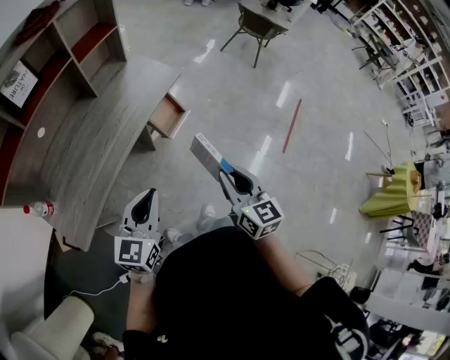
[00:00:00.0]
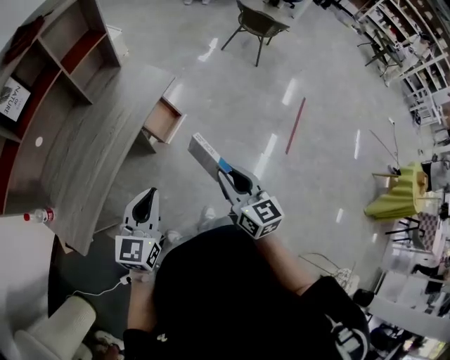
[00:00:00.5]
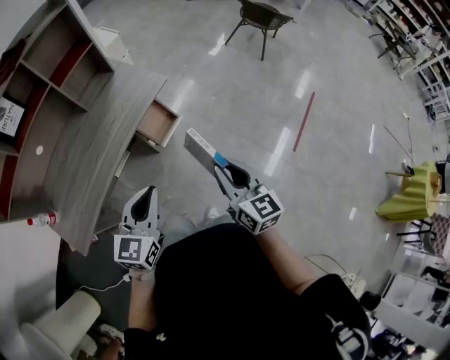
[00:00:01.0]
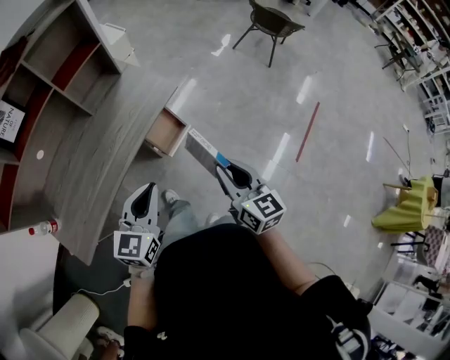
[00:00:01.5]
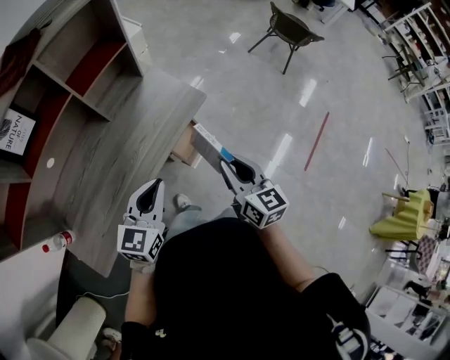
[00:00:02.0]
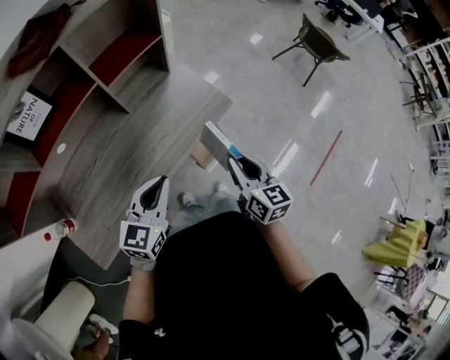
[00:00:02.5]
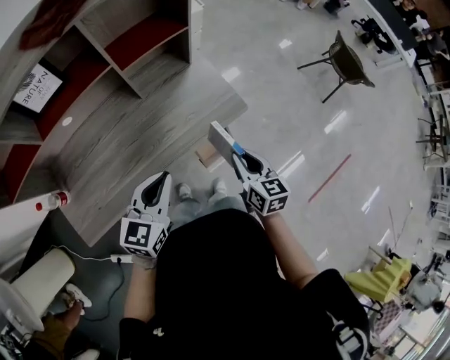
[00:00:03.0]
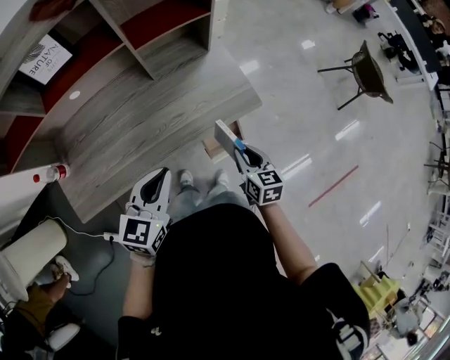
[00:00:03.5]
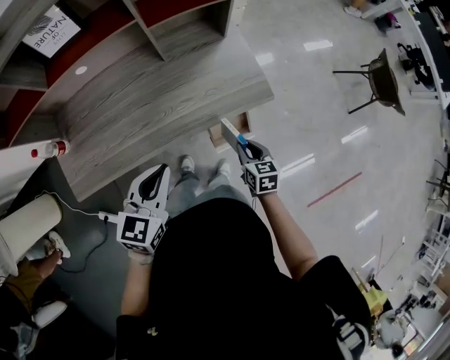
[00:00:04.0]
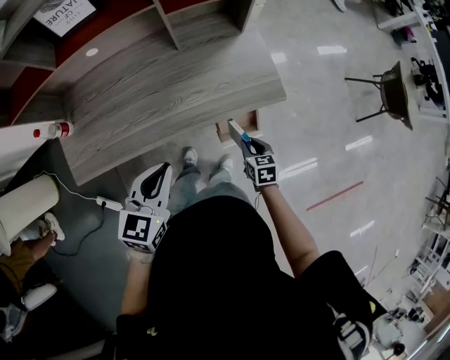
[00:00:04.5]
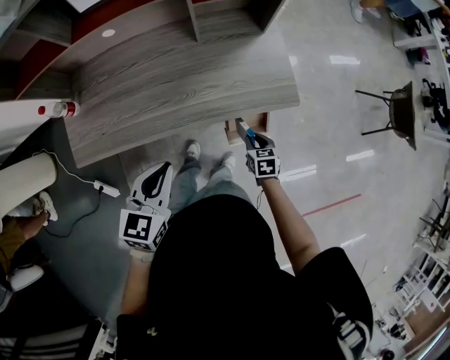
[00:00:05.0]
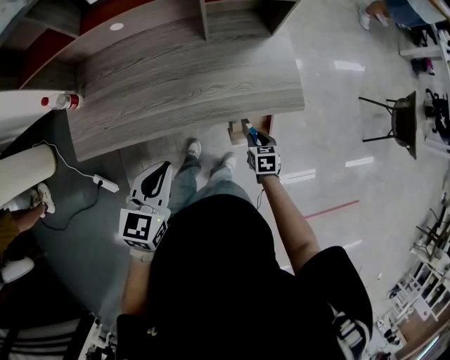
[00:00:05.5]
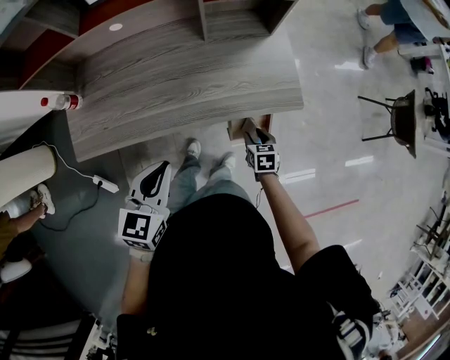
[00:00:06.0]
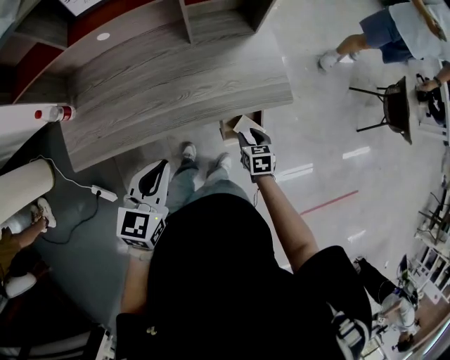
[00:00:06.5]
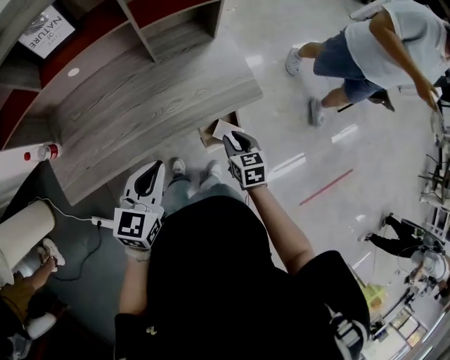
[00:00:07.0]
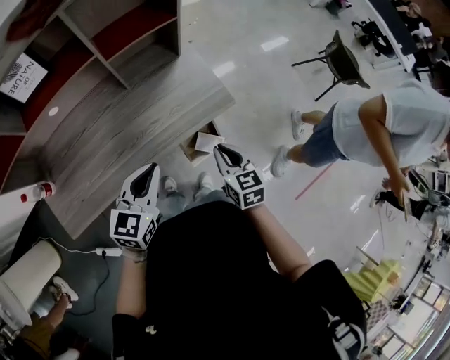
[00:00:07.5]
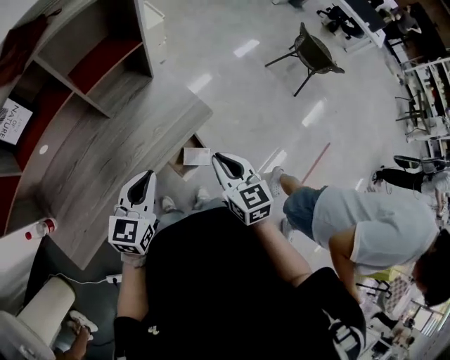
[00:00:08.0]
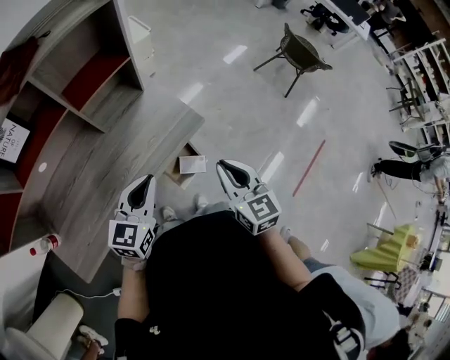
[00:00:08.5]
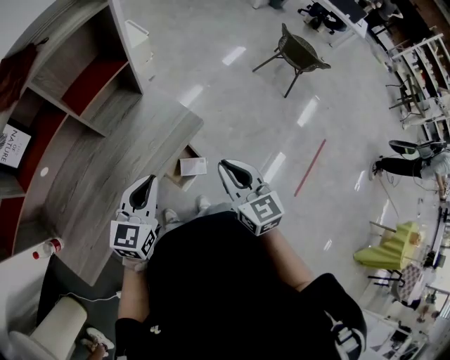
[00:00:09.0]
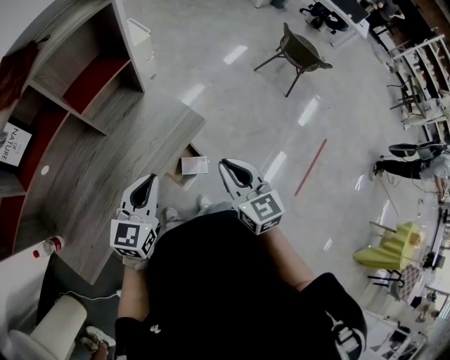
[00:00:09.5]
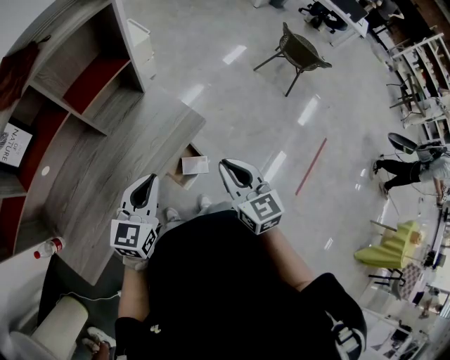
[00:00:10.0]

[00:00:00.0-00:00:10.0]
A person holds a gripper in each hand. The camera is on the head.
00:00:00.0 to 00:00:02.0: Both grippers move forward, some 25 cm.
00:00:02.0 to 00:00:04.0: The left gripper shifts by some 5 cm, and rotates about 30 degrees; the right gripper moves downward, approximately 20 cm, and turns by about 40 degrees.
00:00:04.0 to 00:00:06.0: The right gripper heads downward, covering roughly 10 cm. Meanwhile the left gripper travels to the left by some 5 cm.
00:00:06.0 to 00:00:08.0: The left gripper ends up approximately 15 cm from where it was, and changes its angle by roughly 30 degrees. The right gripper moves upward, approximately 30 cm, changes its angle by some 40 degrees, and closes up.
00:00:08.0 to 00:00:10.0: The right gripper shifts by roughly 5 cm.

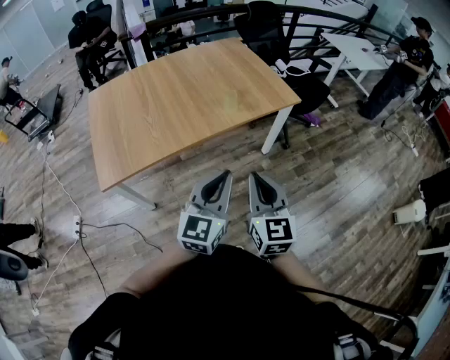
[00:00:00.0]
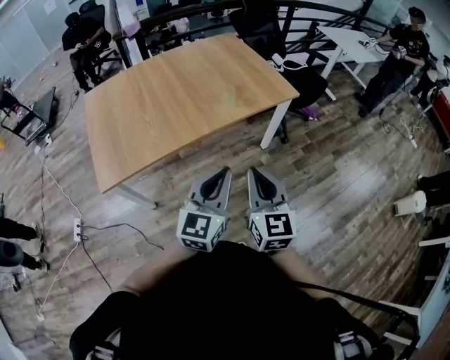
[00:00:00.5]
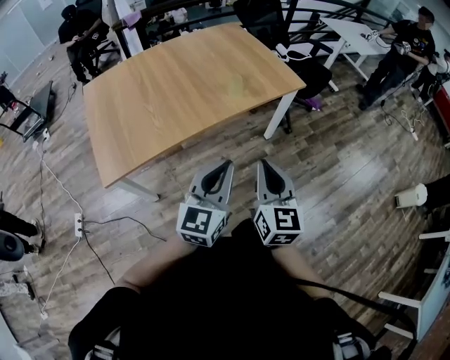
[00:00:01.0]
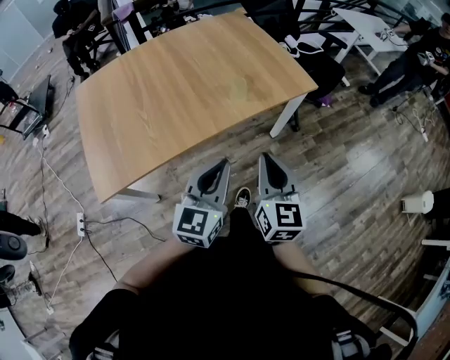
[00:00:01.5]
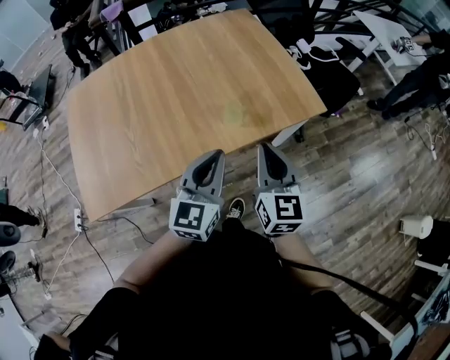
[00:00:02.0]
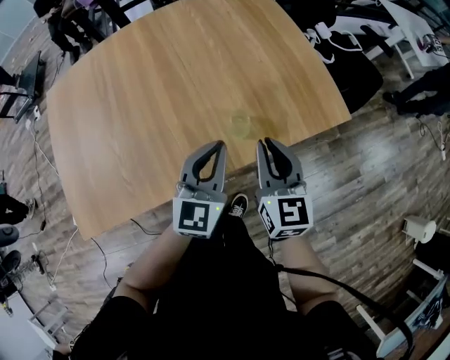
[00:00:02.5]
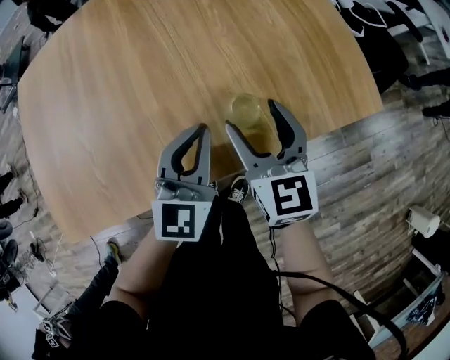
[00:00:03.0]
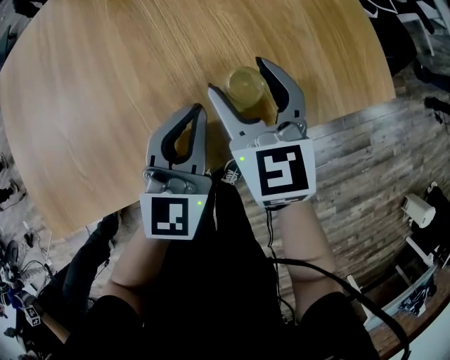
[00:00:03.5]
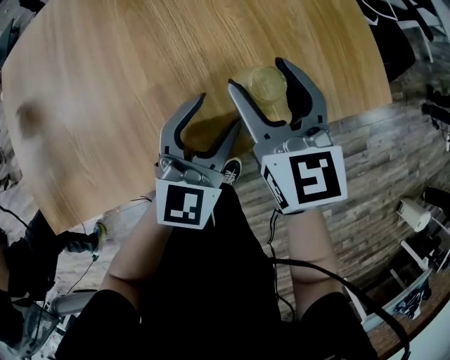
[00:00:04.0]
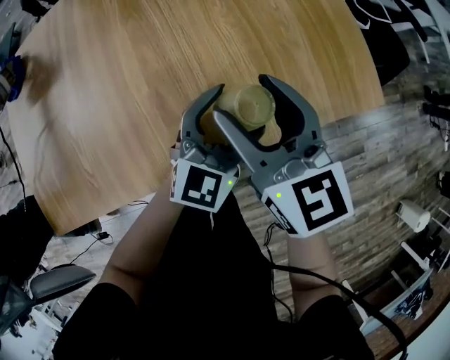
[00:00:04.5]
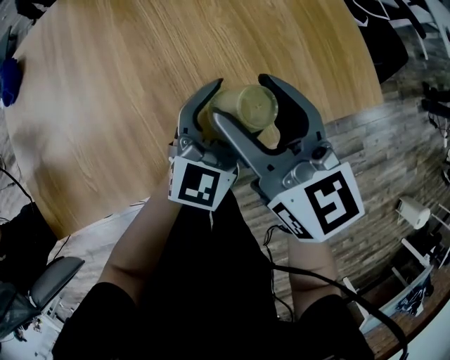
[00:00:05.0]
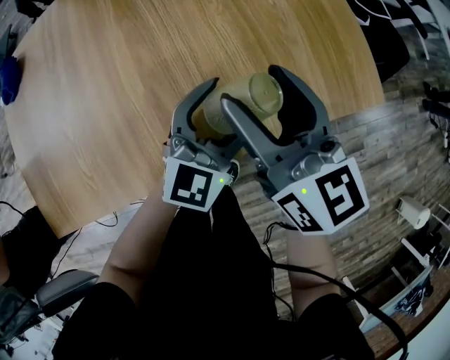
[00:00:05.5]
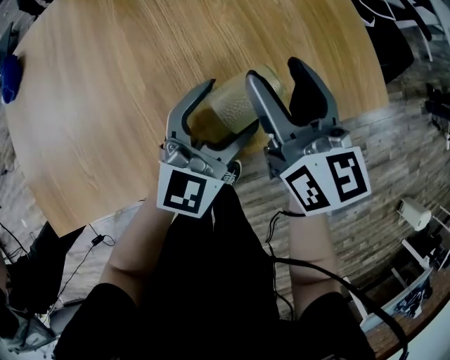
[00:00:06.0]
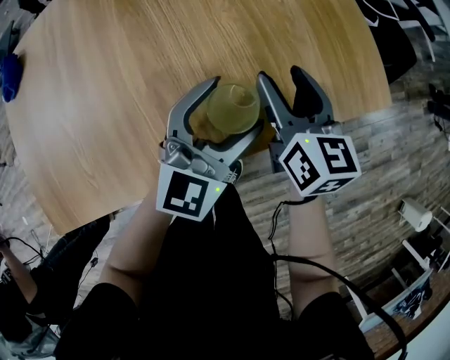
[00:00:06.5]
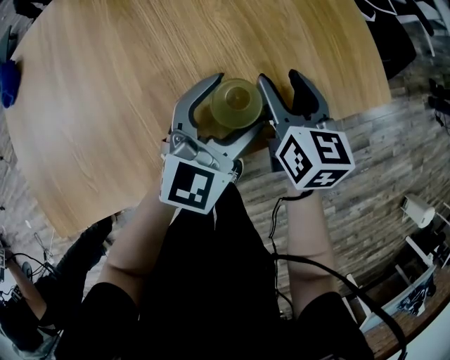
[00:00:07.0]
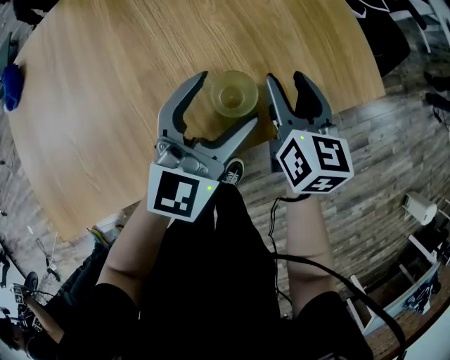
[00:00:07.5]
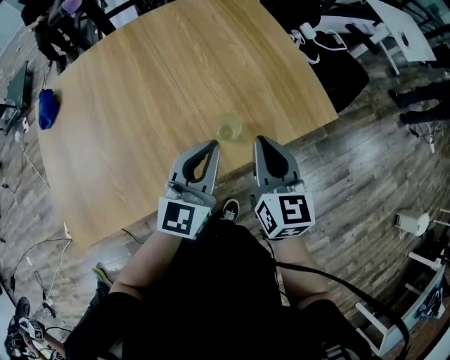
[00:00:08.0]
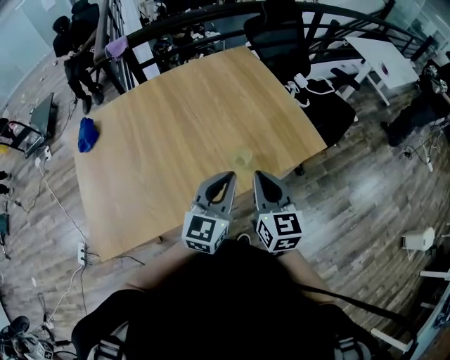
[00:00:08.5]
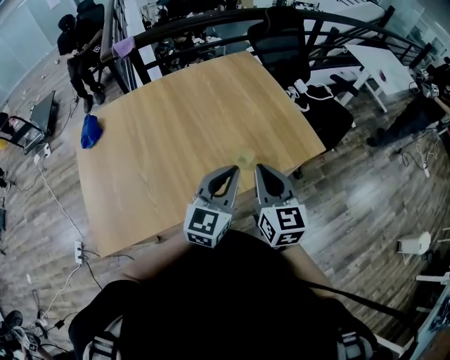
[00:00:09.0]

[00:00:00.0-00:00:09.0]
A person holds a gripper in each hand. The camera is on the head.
00:00:00.0 to 00:00:02.0: The two grippers go roughly 35 cm forward.
00:00:02.0 to 00:00:04.5: The right gripper moves forward and downward, about 25 cm, turns by about 20 degrees, and opens; the left gripper heads downward and forward, covering roughly 35 cm, and opens its fingers.
00:00:04.5 to 00:00:07.0: The right gripper is displaced downward, to the right and forward by some 15 cm, and swivels some 20 degrees.
00:00:07.0 to 00:00:09.0: The grippers both shift upward and backward by roughly 35 cm. The left gripper closes up. Meanwhile the right gripper turns by about 20 degrees, and closes its fingers.

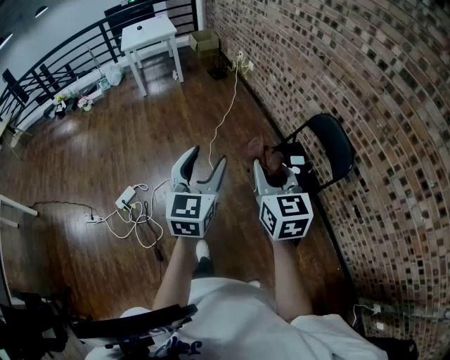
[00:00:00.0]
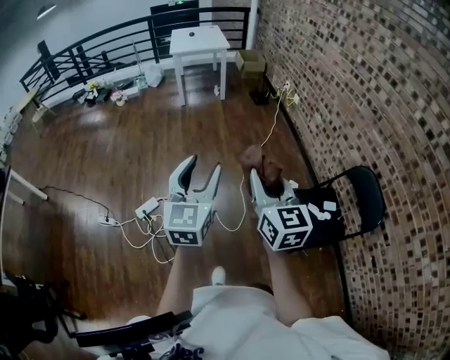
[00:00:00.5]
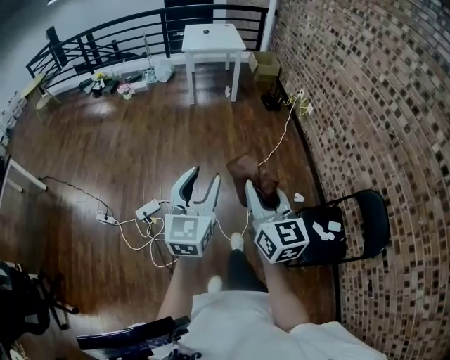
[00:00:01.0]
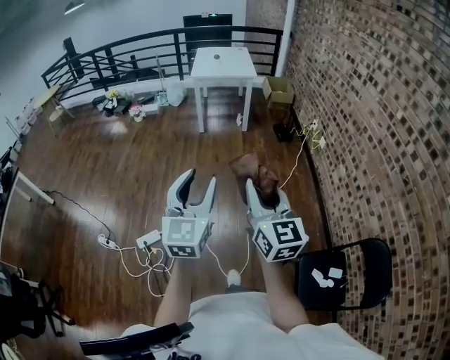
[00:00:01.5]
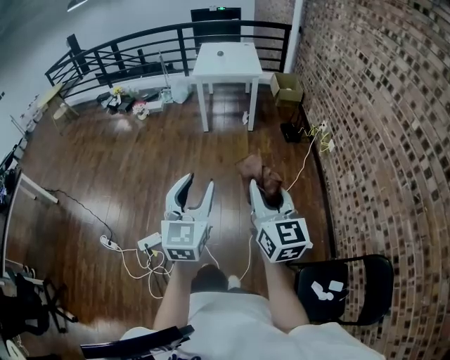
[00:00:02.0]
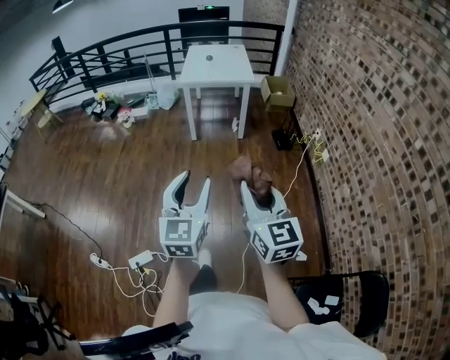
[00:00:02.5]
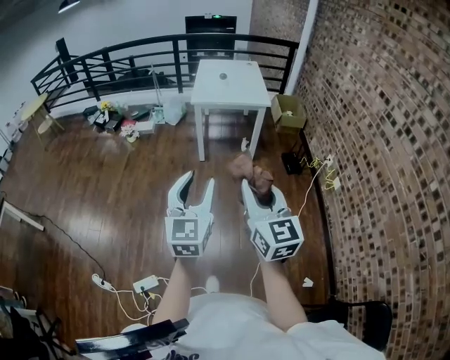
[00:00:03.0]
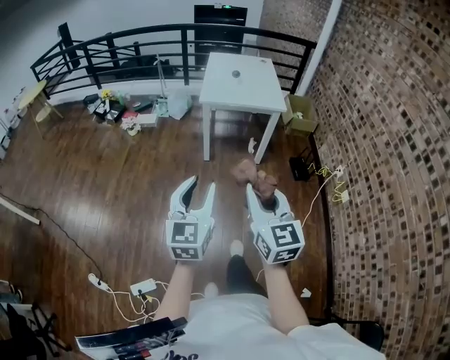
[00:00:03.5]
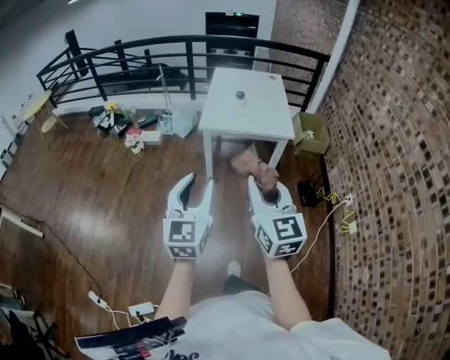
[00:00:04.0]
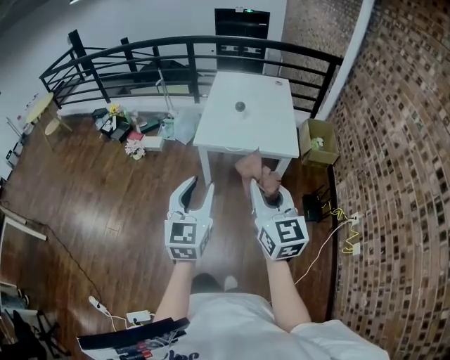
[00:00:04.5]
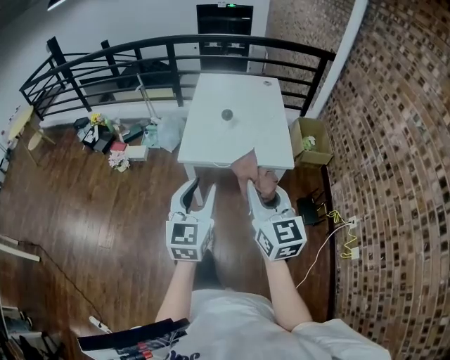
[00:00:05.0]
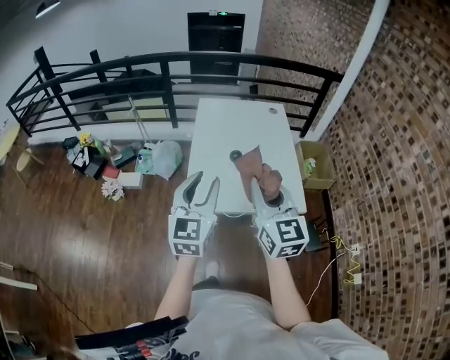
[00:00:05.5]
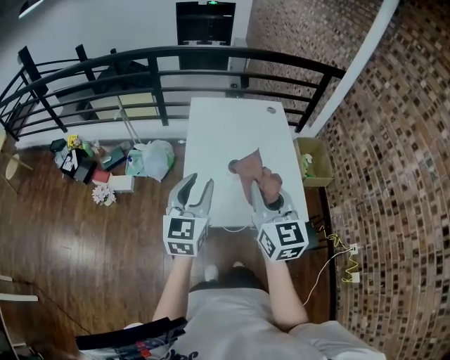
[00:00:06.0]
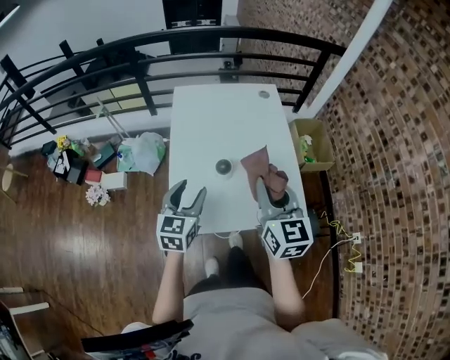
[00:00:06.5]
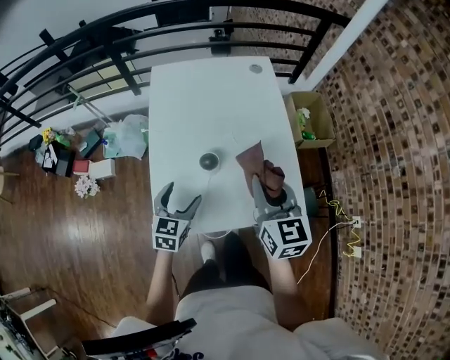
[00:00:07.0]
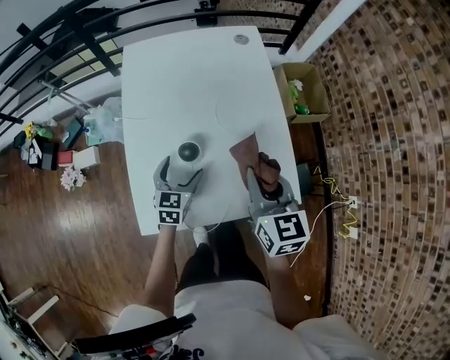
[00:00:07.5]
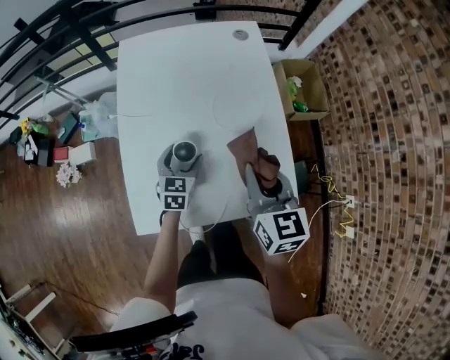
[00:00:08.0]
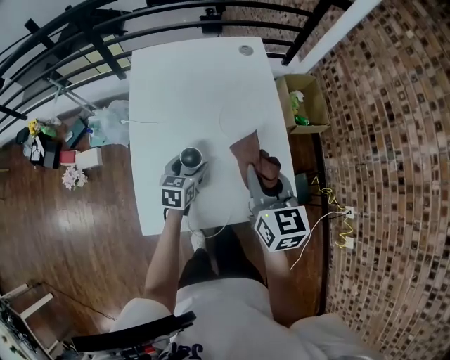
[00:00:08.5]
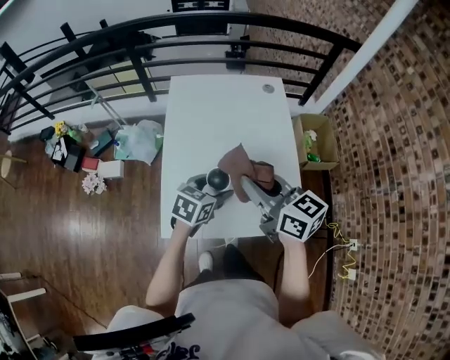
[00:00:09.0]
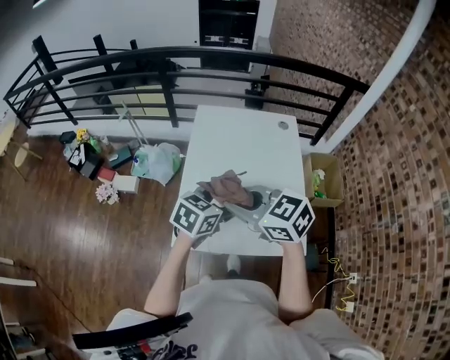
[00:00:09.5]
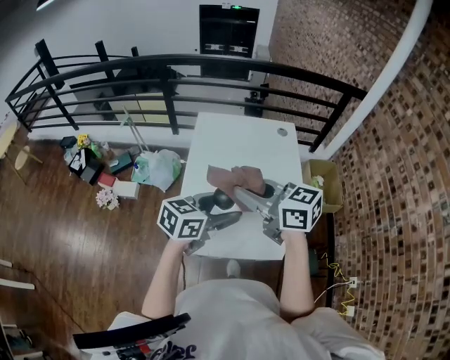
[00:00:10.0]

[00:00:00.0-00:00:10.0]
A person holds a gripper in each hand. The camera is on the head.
00:00:00.0 to 00:00:02.0: Both grippers are carried forward, roughly 50 cm. The right gripper rotates approximately 30 degrees; the left gripper swivels some 20 degrees.
00:00:02.0 to 00:00:04.0: The two grippers travel together, forward, some 70 cm.
00:00:04.0 to 00:00:06.0: Both grippers are carried forward, roughly 60 cm.
00:00:06.0 to 00:00:08.0: The left gripper shifts roughly 40 cm downward and forward, rotates roughly 30 degrees, and opens its fingers. The right gripper shifts some 30 cm downward, forward and to the right, and rotates about 20 degrees.
00:00:08.0 to 00:00:10.0: The left gripper moves upward and backward, some 30 cm, and turns by approximately 30 degrees. Meanwhile the right gripper goes roughly 25 cm upward and to the left, and rotates about 50 degrees.
